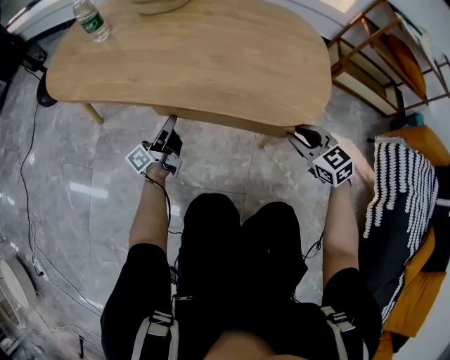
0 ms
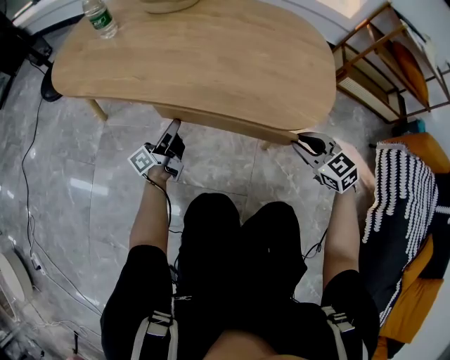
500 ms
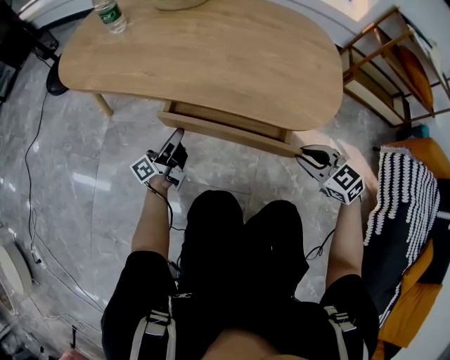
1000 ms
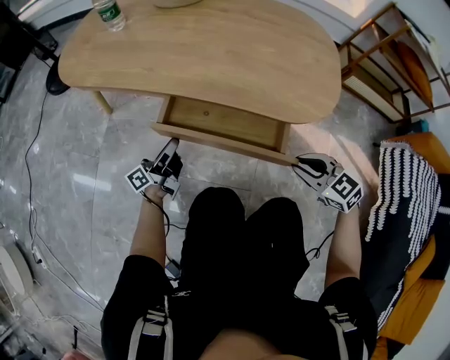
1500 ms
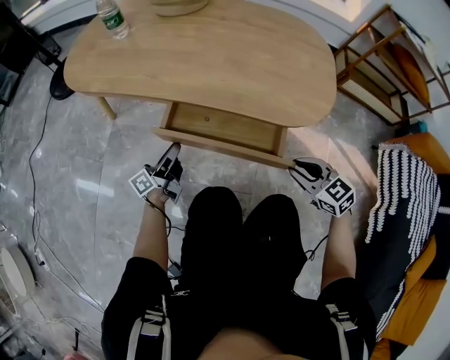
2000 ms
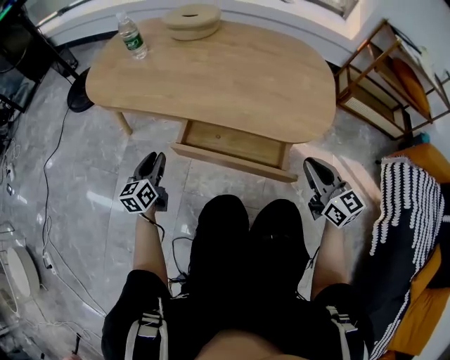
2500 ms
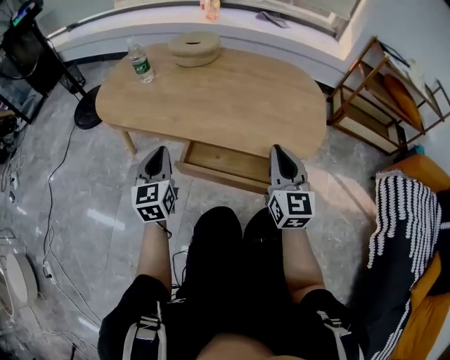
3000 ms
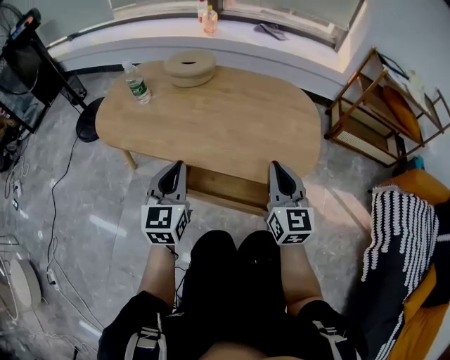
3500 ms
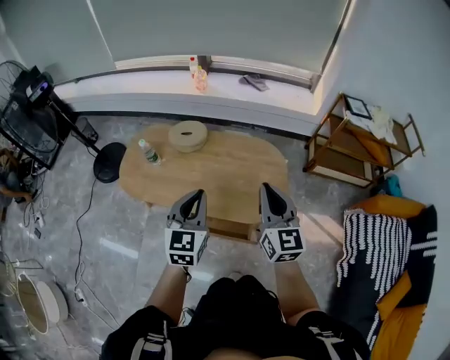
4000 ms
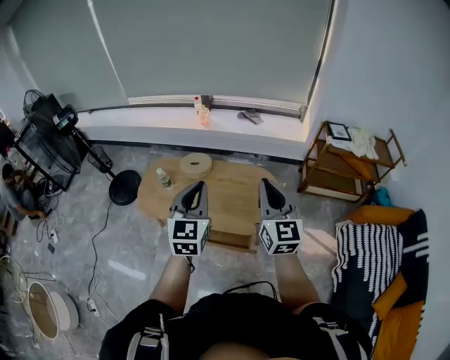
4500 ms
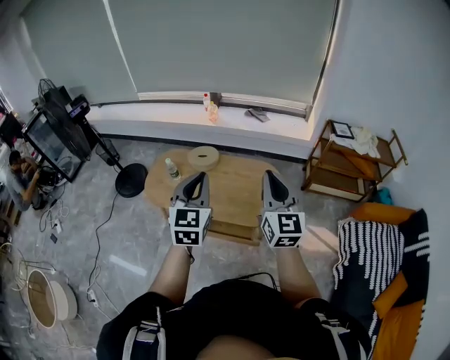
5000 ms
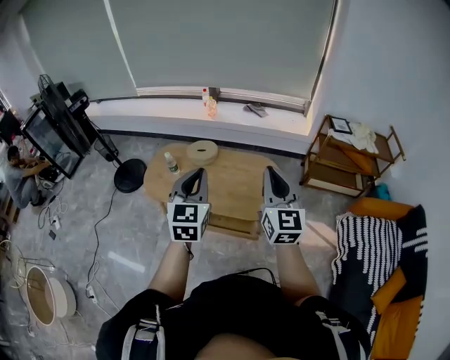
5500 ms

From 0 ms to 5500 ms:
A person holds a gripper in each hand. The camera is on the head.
From 0 ms to 2000 ms: Both grippers move backward, about 10 cm.
From 2000 ms to 3500 ms: The left gripper moves upward, about 30 cm, rolls clockwise, seen from behind, by approximately 70 degrees, and closes its fingers; the right gripper goes approximately 25 cm upward and forward, and points its fingers approximately 30 degrees further upward.
From 3500 ms to 5500 ms: The grippers both shift upward by approximately 60 cm.

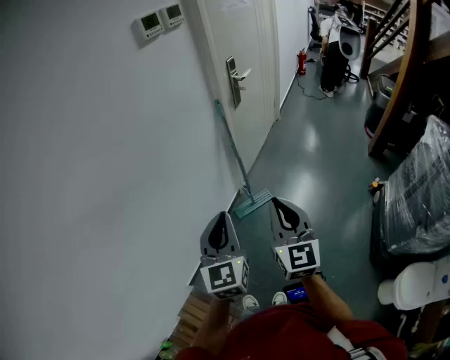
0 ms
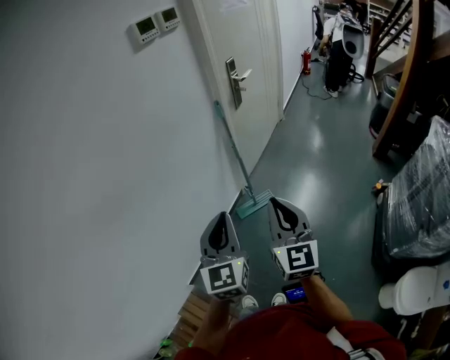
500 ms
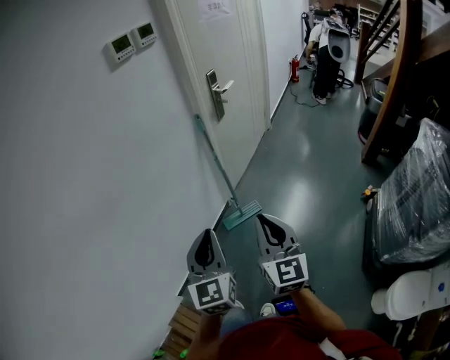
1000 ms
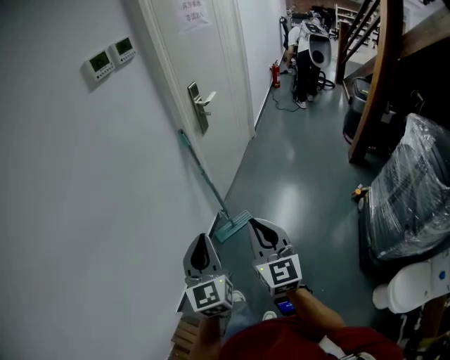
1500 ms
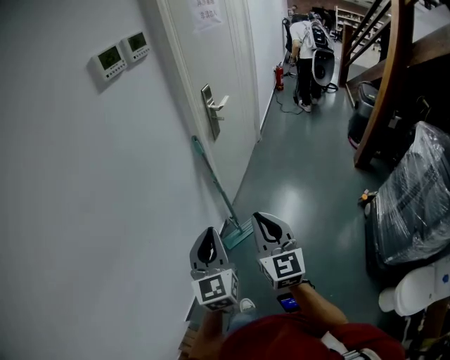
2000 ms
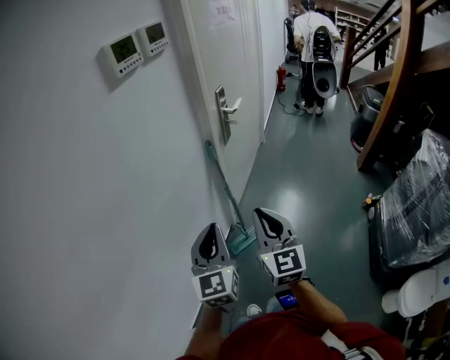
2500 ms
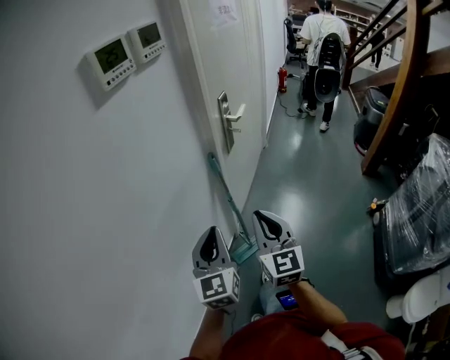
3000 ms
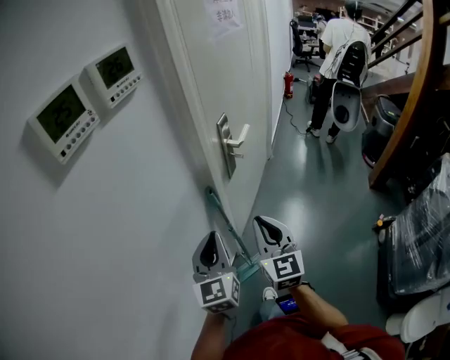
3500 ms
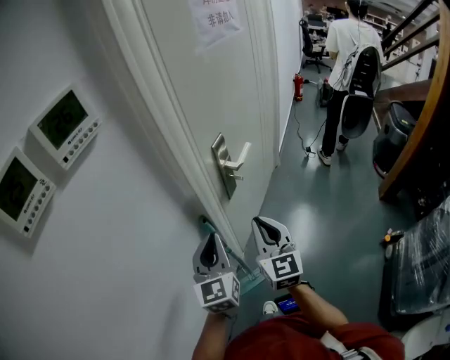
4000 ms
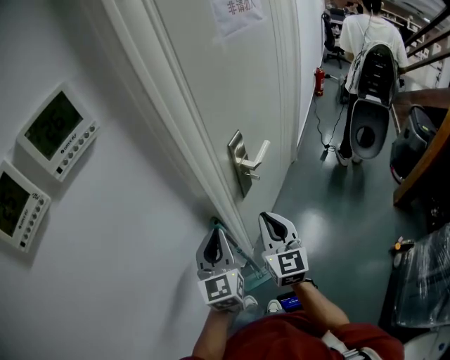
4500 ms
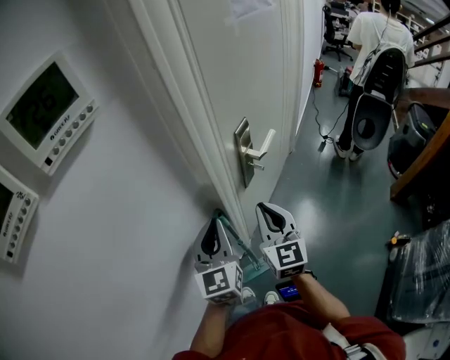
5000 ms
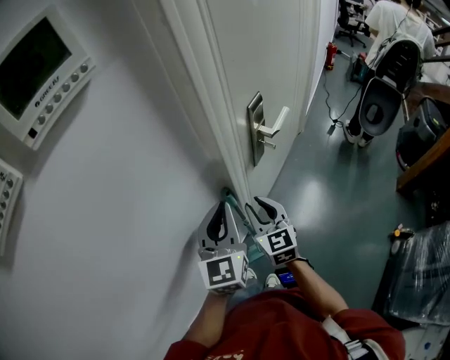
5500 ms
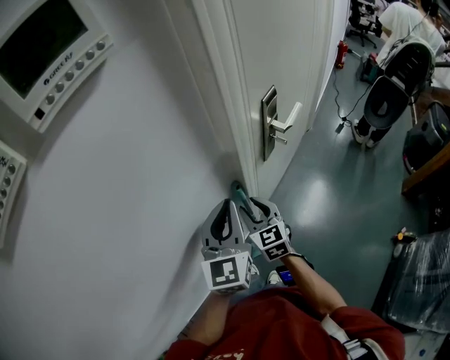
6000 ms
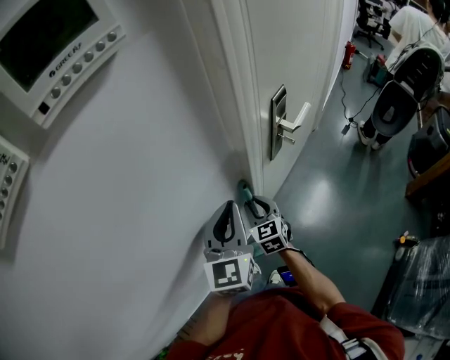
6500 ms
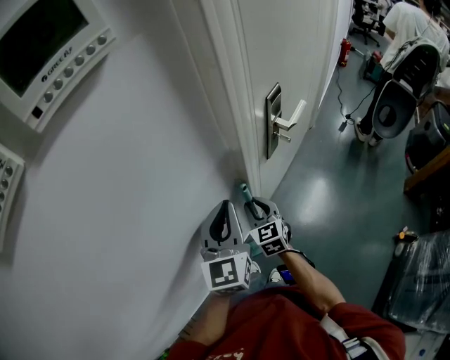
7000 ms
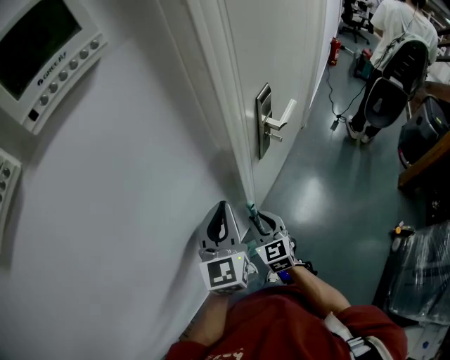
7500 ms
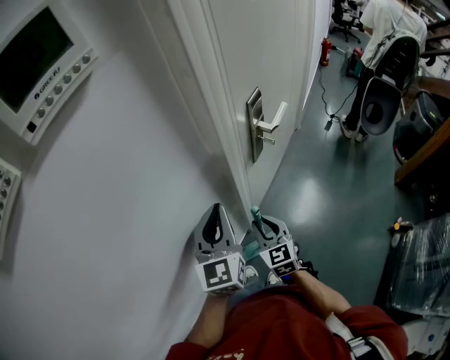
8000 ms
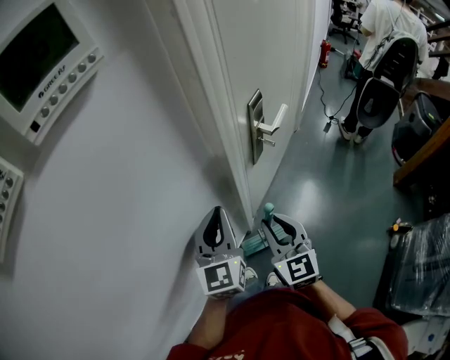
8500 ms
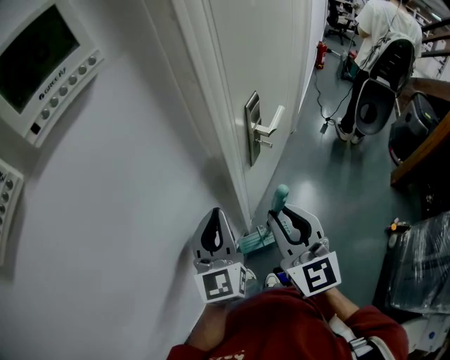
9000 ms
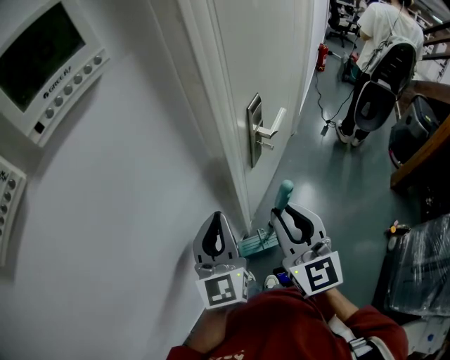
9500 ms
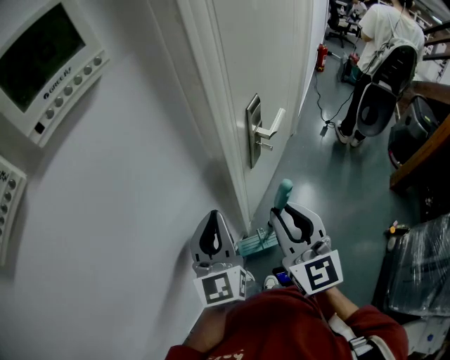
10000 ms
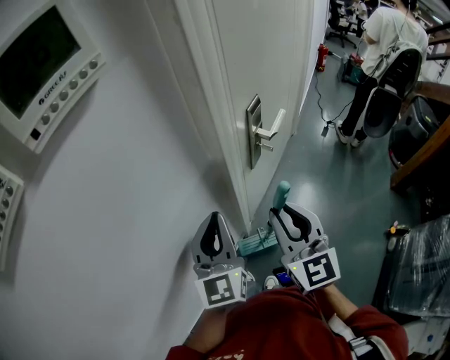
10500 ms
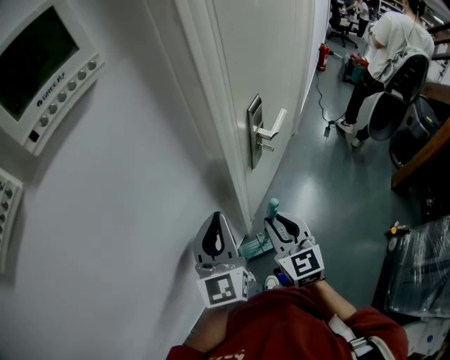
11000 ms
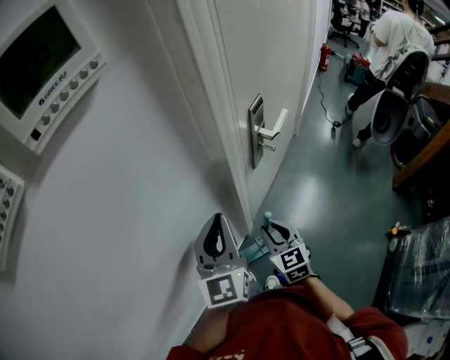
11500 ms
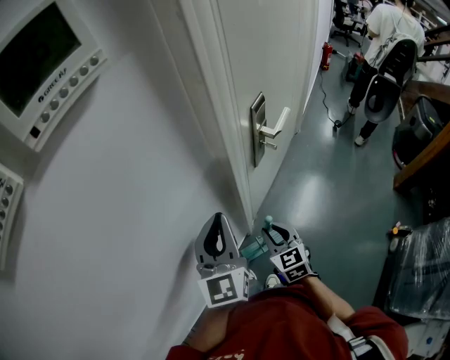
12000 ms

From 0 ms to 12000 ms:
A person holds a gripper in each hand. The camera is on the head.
From 0 ms to 2000 ms: Both grippers move forward, approximately 15 cm.
From 2000 ms to 4000 ms: The pair of grippers is taken forward, about 40 cm.
From 4000 ms to 6000 ms: The right gripper shifts some 25 cm downward, to the left and forward, changes its angle by some 30 degrees, and opens up, while the left gripper moves some 5 cm.
From 6000 ms to 8000 ms: The right gripper goes some 5 cm backward.
From 8000 ms to 10000 ms: The right gripper moves upward, roughly 25 cm.
From 10000 ms to 12000 ms: The right gripper moves downward, roughly 25 cm, and swivels some 30 degrees.

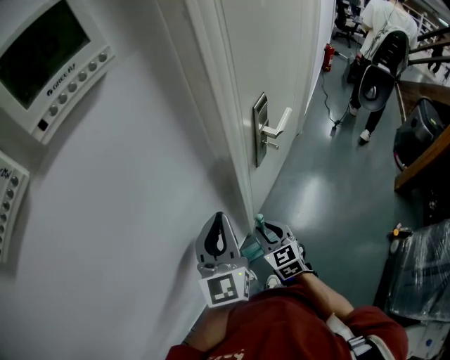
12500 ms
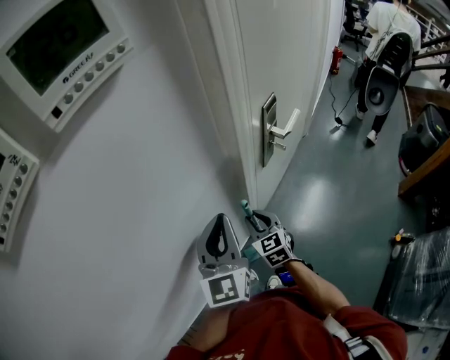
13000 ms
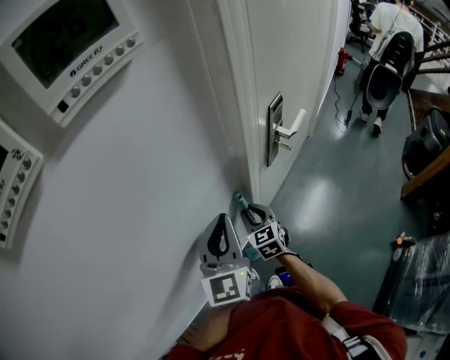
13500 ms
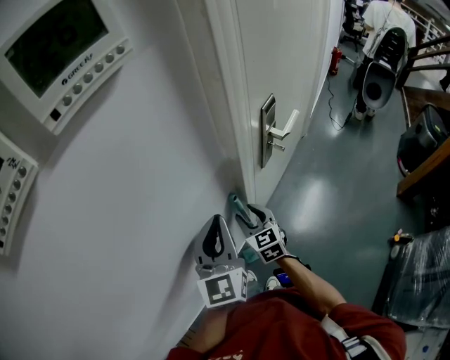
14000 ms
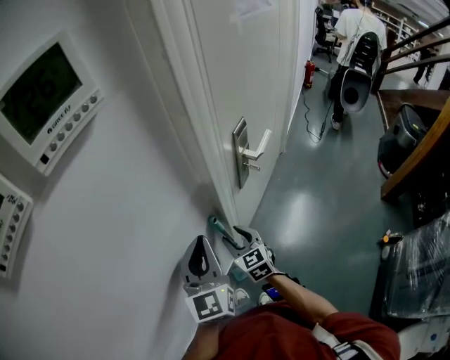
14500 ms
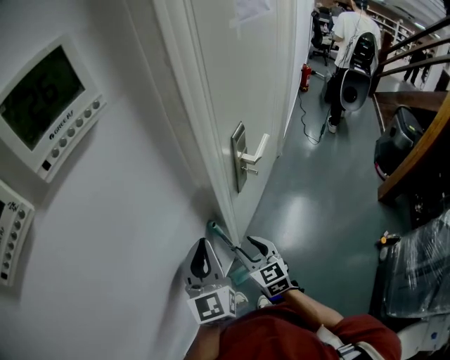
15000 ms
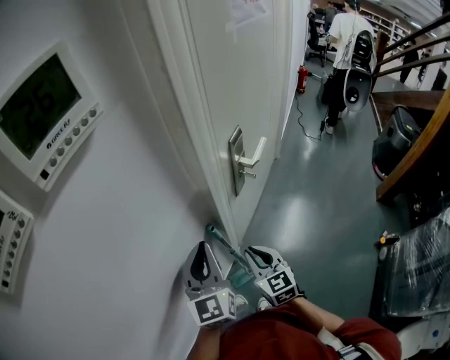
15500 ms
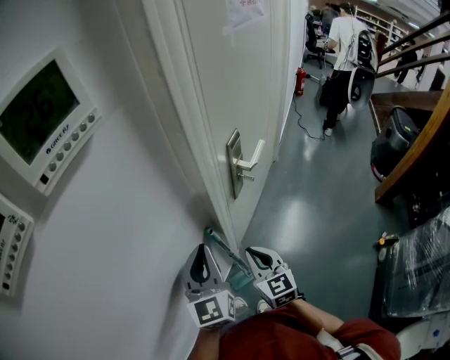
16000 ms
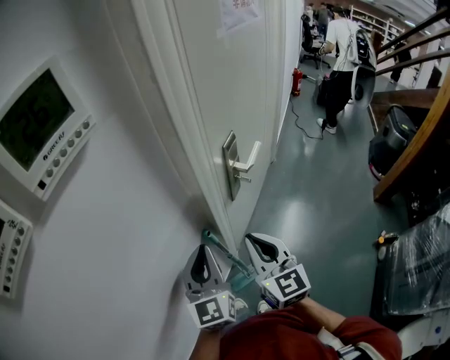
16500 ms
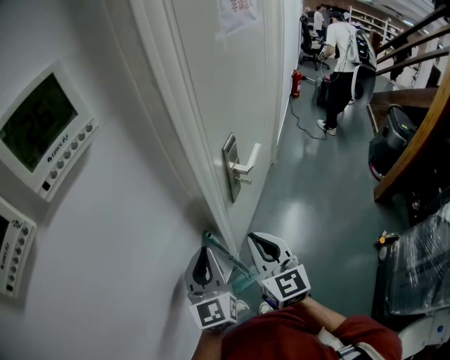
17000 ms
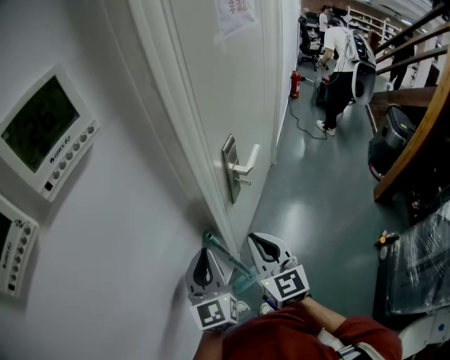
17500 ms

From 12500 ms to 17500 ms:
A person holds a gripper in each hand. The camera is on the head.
From 12500 ms to 15000 ms: The right gripper travels forward and back again, about 10 cm each way, and opens its fingers.
From 15000 ms to 17500 ms: The right gripper is displaced upward by some 15 cm, and closes its fingers.

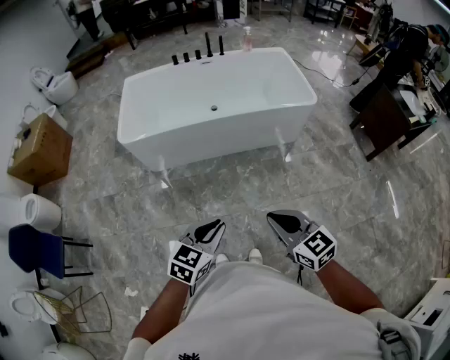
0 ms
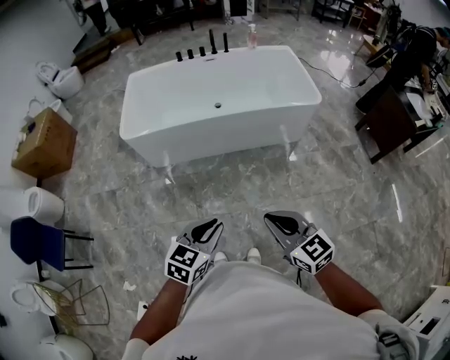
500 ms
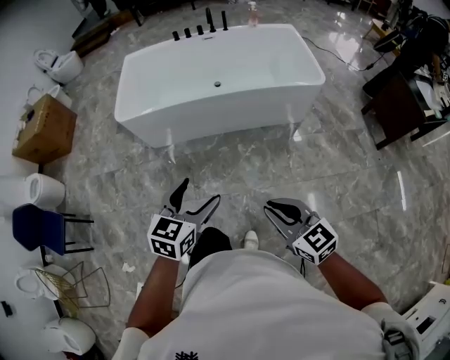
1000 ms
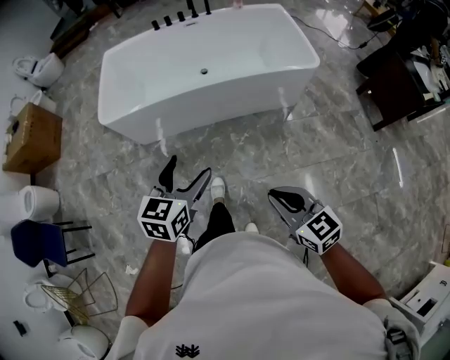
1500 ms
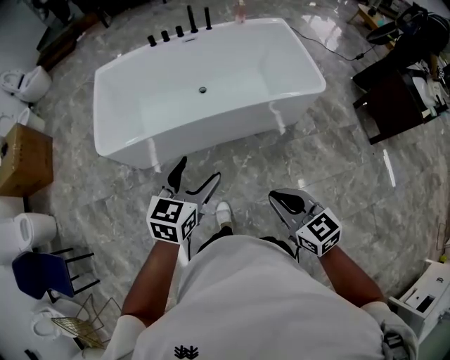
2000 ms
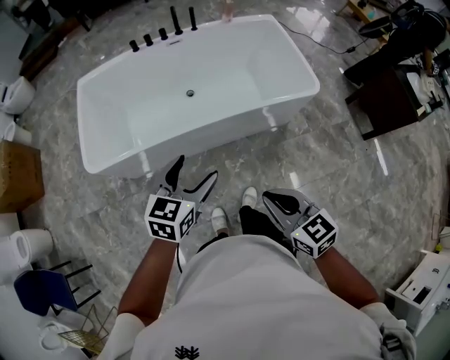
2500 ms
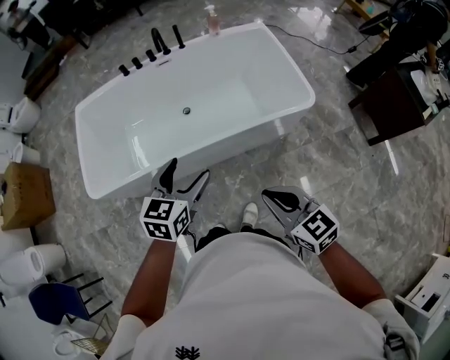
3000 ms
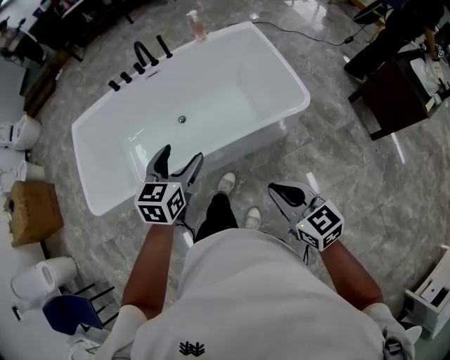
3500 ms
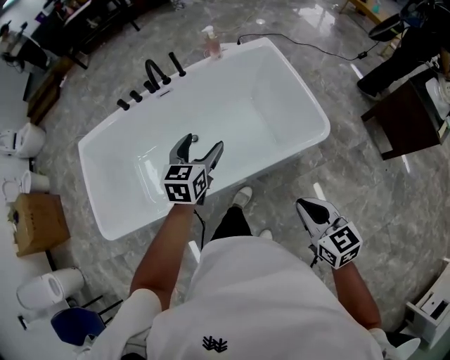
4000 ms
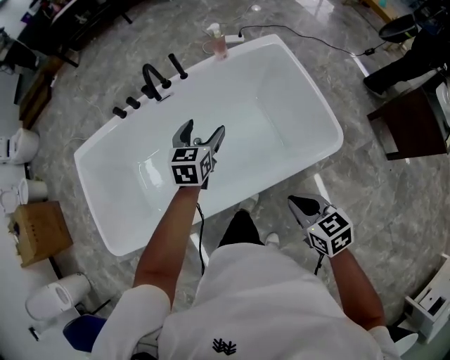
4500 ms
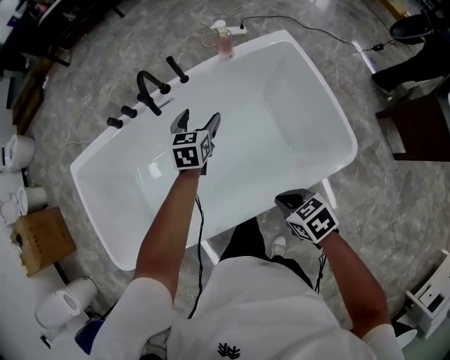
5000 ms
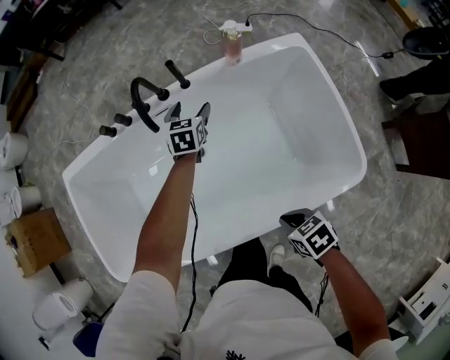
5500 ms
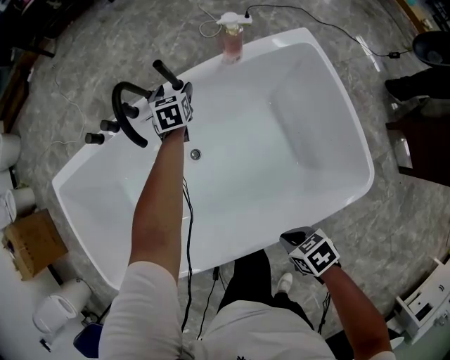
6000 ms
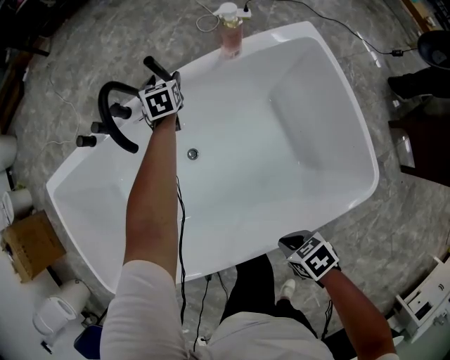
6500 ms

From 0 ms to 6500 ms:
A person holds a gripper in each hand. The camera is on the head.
From 0 ms to 2000 ms: The grippers both shift forward by some 30 cm. The left gripper opens up.
From 2000 ms to 4500 ms: Both grippers are carried forward, about 60 cm. The right gripper rotates roughly 20 degrees.
From 4500 ms to 6500 ms: The left gripper shifts by about 50 cm, and swivels some 20 degrees; the right gripper shifts some 25 cm downward, and rotates approximately 40 degrees.
